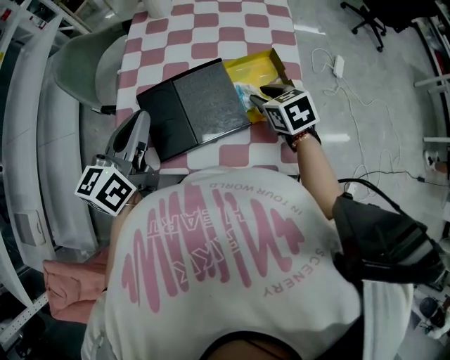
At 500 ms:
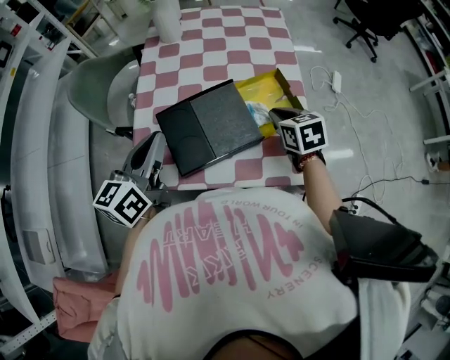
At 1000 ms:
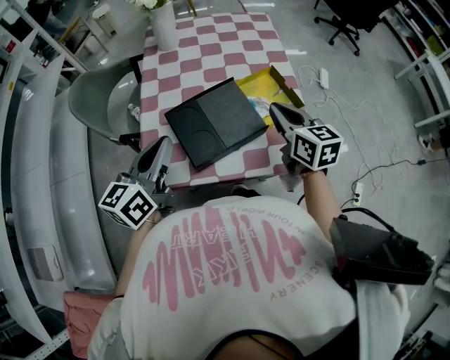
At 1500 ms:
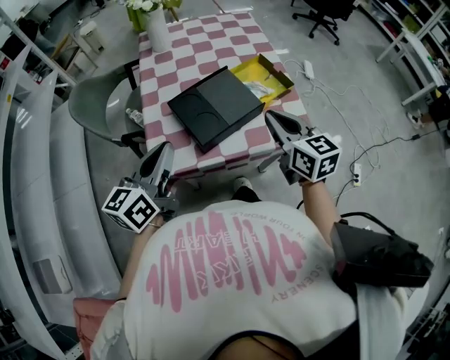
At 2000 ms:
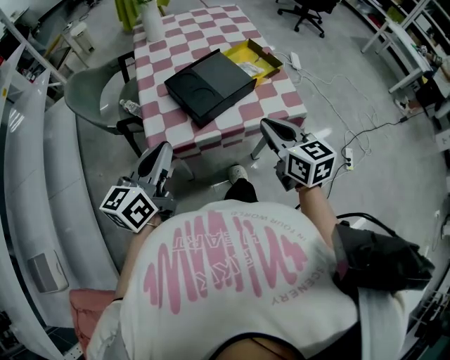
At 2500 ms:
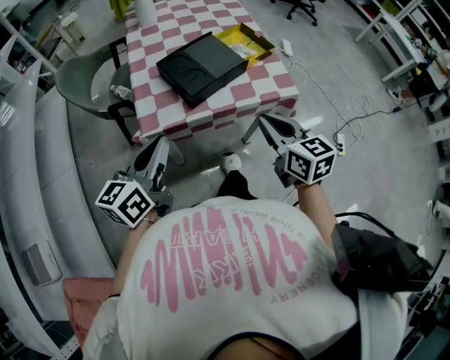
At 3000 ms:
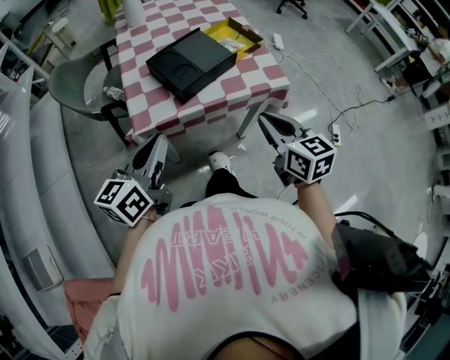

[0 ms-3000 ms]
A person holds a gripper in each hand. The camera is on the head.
0 ms to 1500 ms: The right gripper is displaced backward and upward by some 25 cm, tilts its fingers about 30 degrees upward, and closes. Meanwhile the left gripper is displaced backward and to the left by some 15 cm.
1500 ms to 3000 ms: Both grippers move backward, some 15 cm.

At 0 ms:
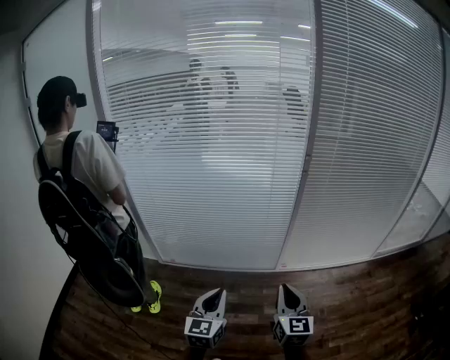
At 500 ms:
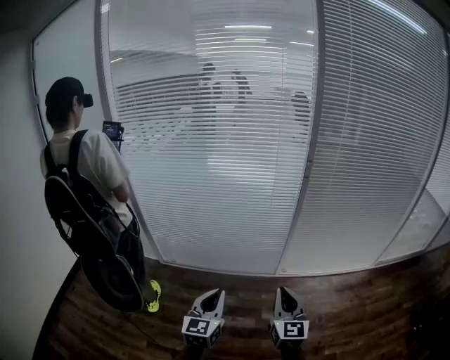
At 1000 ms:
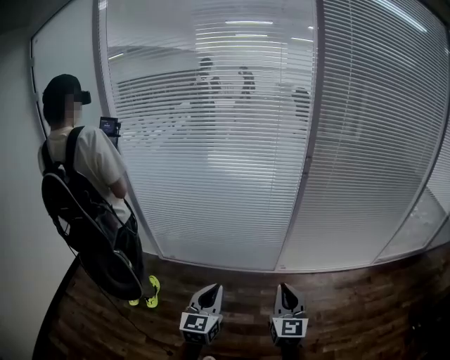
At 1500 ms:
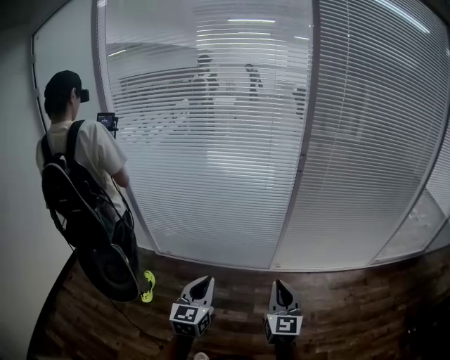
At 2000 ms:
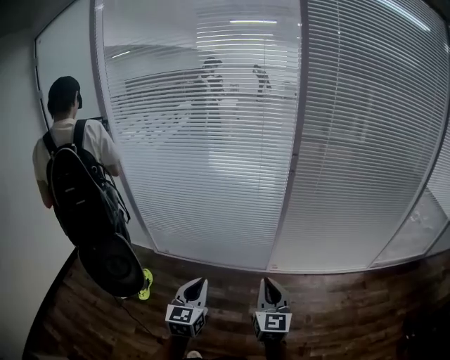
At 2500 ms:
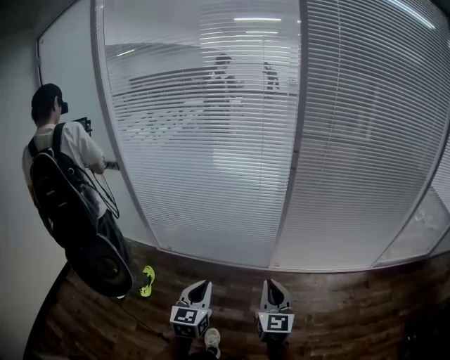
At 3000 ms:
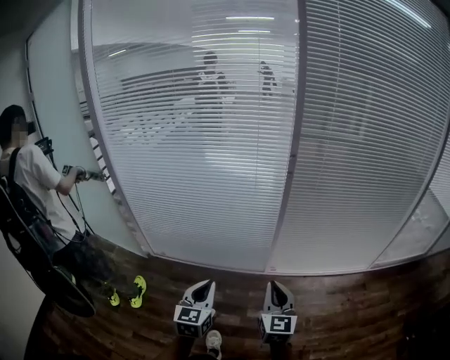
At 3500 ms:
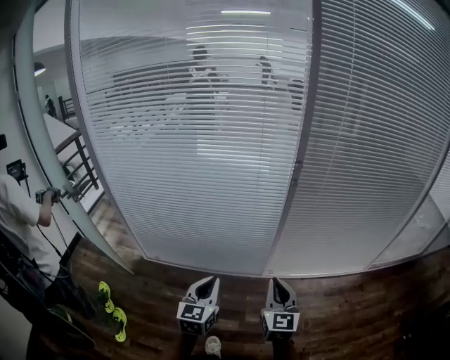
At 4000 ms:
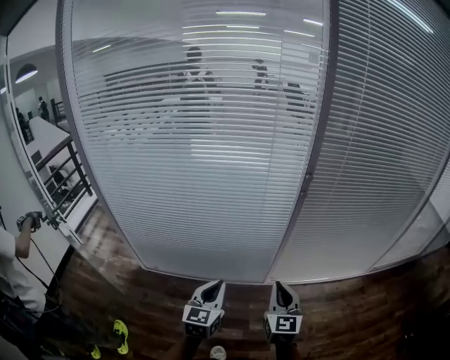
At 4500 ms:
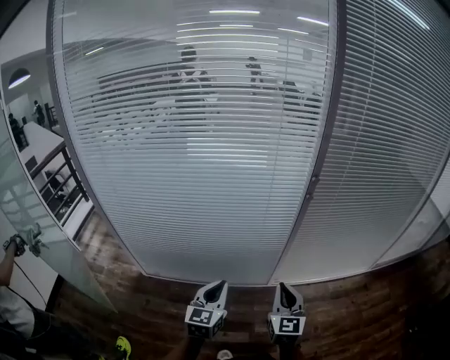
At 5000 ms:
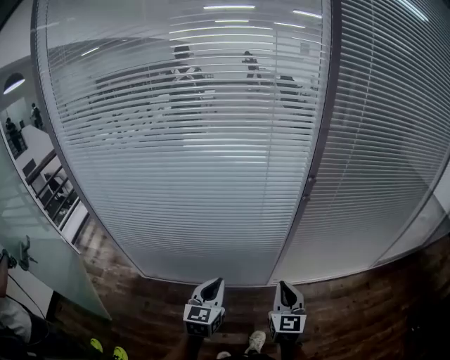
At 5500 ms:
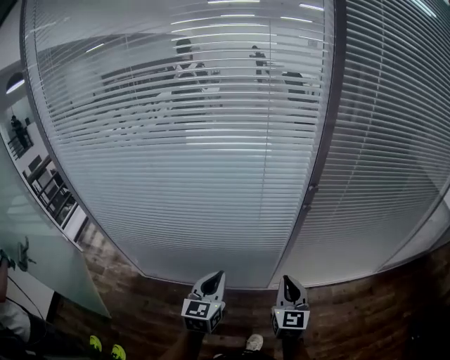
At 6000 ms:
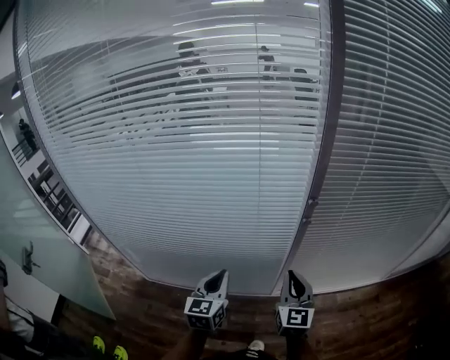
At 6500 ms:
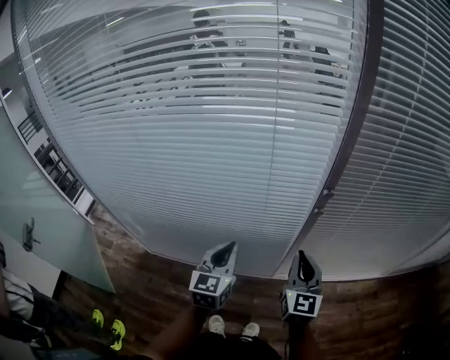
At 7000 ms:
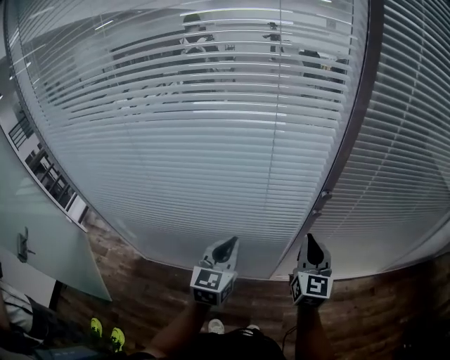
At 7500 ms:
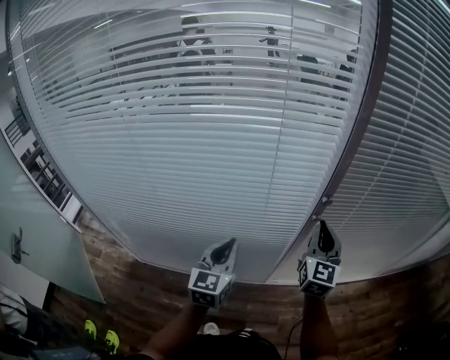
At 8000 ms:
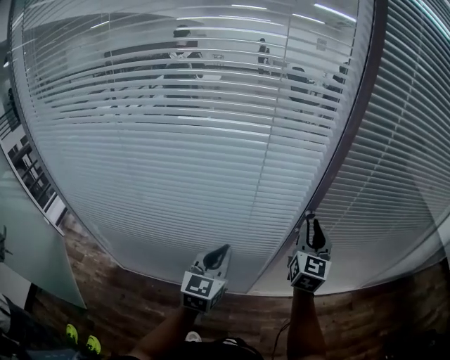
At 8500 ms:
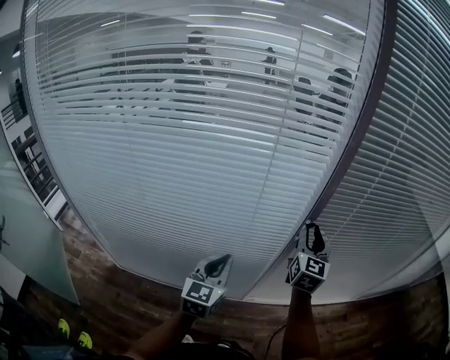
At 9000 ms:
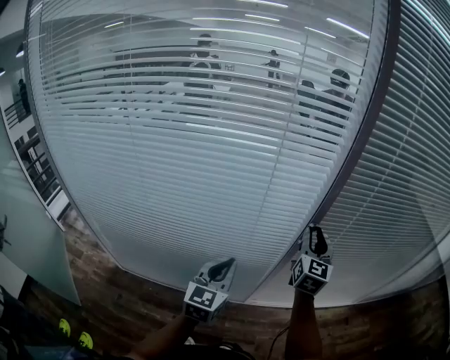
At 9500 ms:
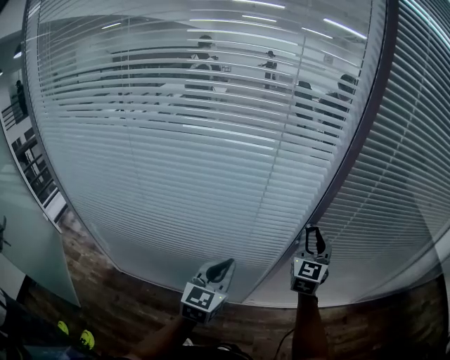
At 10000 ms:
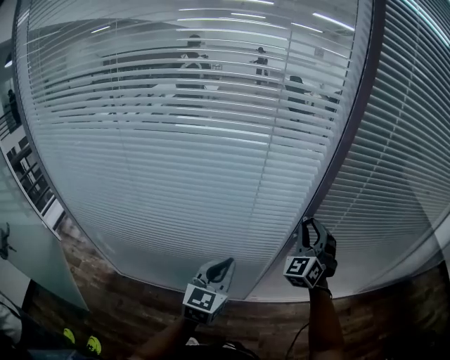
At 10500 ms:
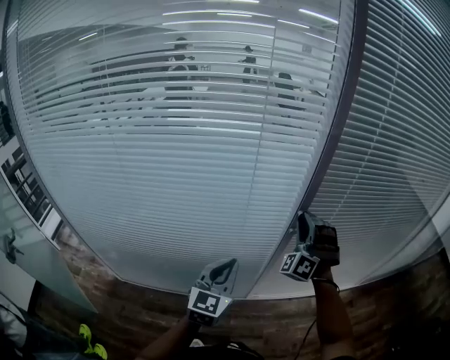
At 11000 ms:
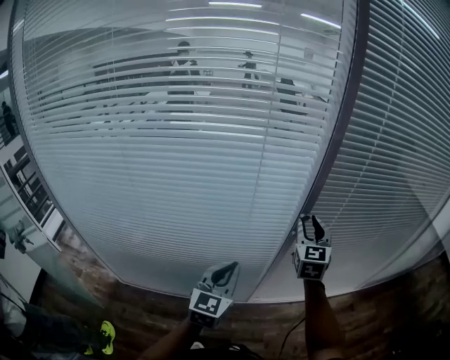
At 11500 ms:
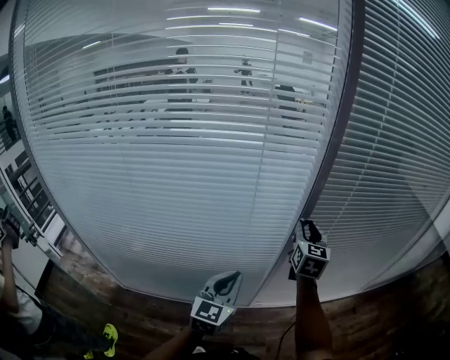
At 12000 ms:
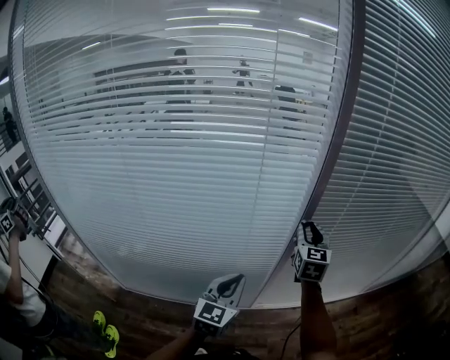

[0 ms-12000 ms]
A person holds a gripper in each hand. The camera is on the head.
0 ms to 2000 ms: Both grippers travel together to the right, about 5 cm.
2000 ms to 4000 ms: Both grippers travel together forward, approximately 15 cm.
4000 ms to 6000 ms: Both grippers move forward, about 20 cm.
6000 ms to 8000 ms: The right gripper is displaced forward and upward by about 20 cm, while the left gripper heads forward, covering approximately 10 cm.
8000 ms to 10000 ms: The right gripper rotates around the line of its fingers by roughly 50 degrees, counterclockwise from behind.
10000 ms to 12000 ms: The right gripper rotates around the line of its fingers by some 50 degrees, clockwise from behind.

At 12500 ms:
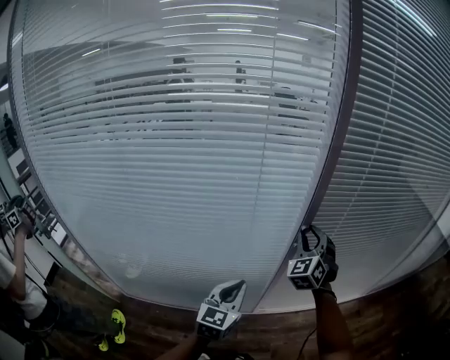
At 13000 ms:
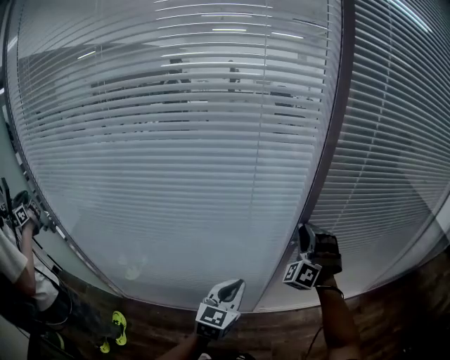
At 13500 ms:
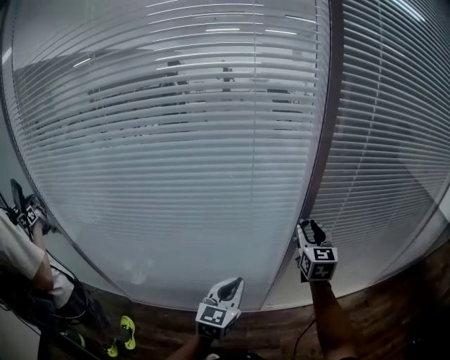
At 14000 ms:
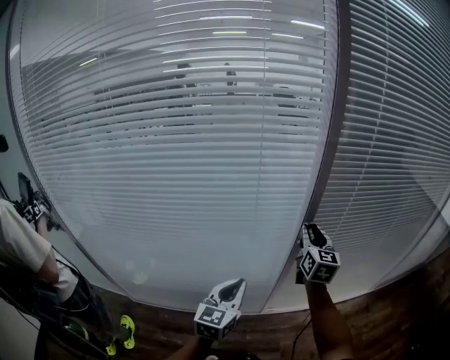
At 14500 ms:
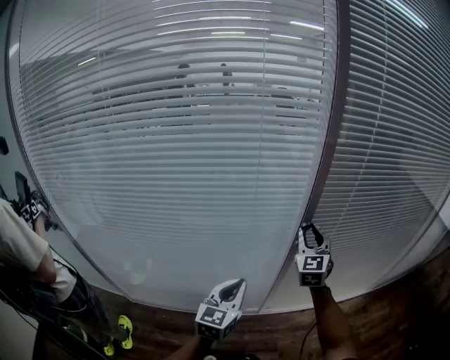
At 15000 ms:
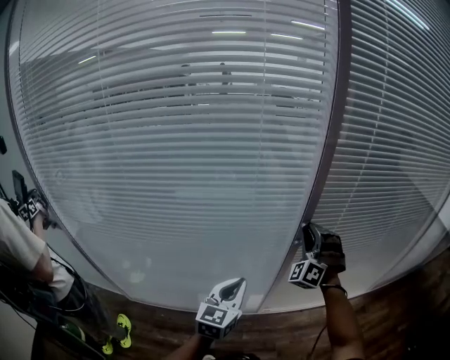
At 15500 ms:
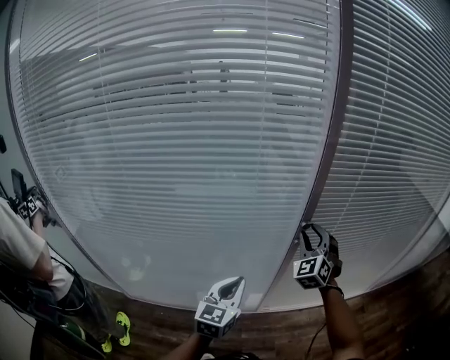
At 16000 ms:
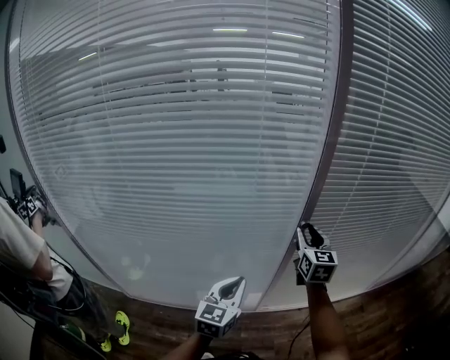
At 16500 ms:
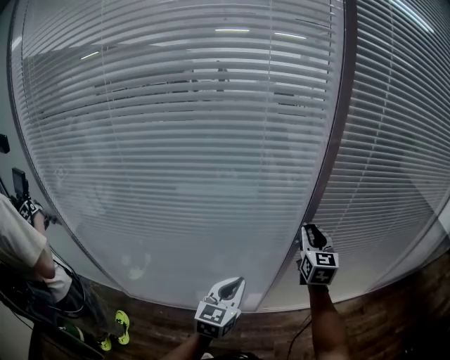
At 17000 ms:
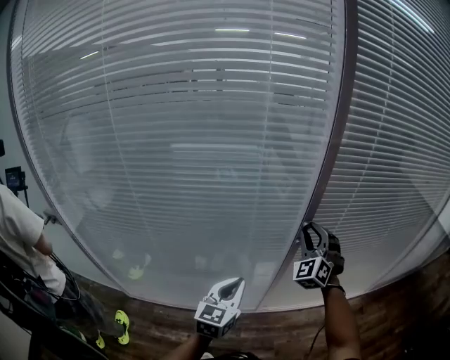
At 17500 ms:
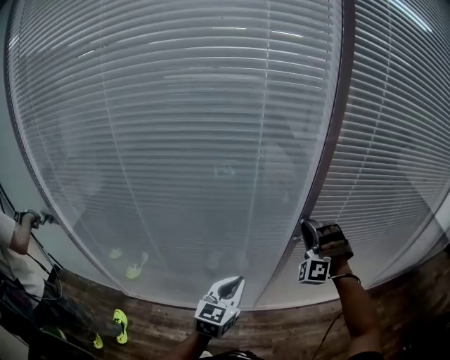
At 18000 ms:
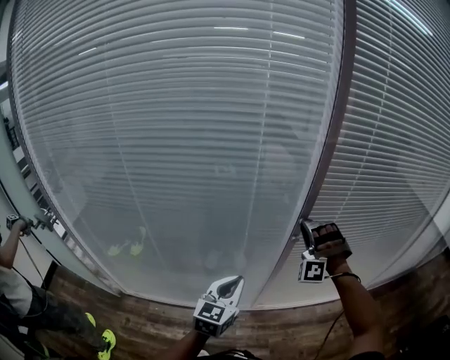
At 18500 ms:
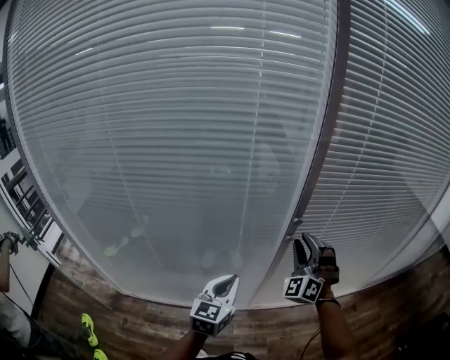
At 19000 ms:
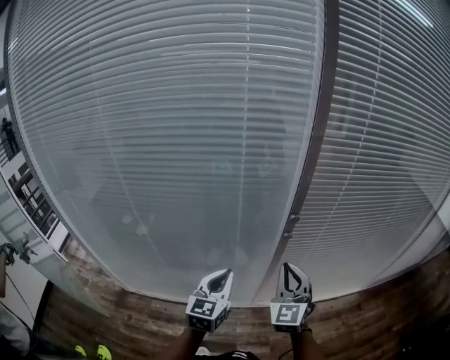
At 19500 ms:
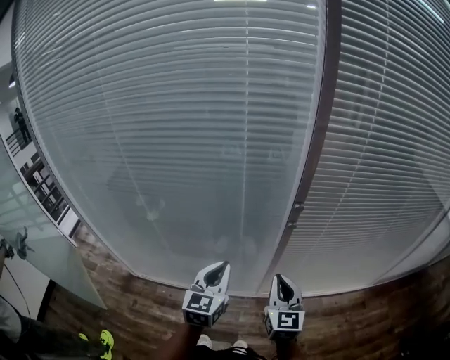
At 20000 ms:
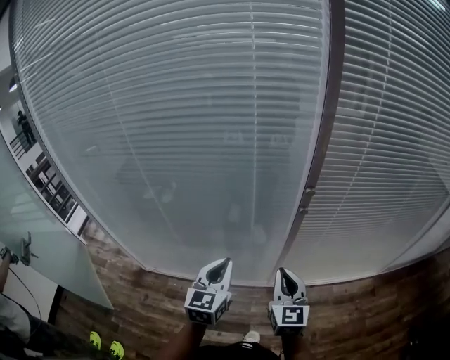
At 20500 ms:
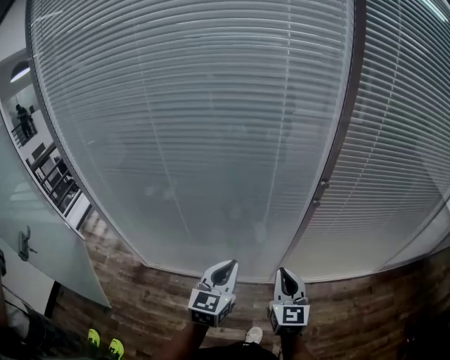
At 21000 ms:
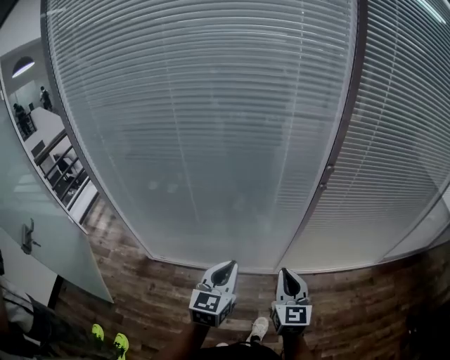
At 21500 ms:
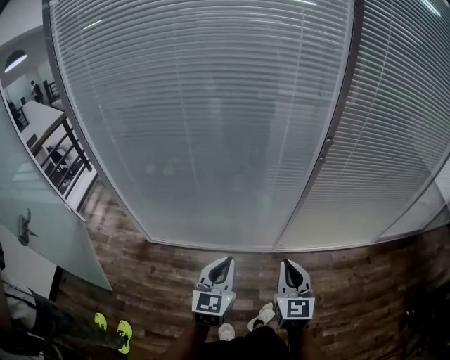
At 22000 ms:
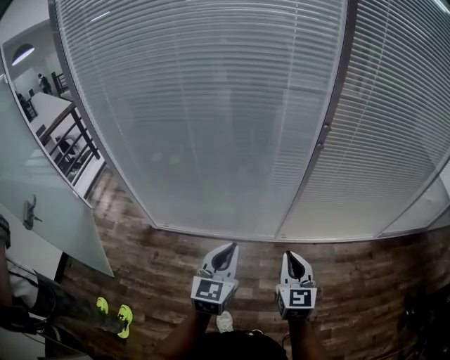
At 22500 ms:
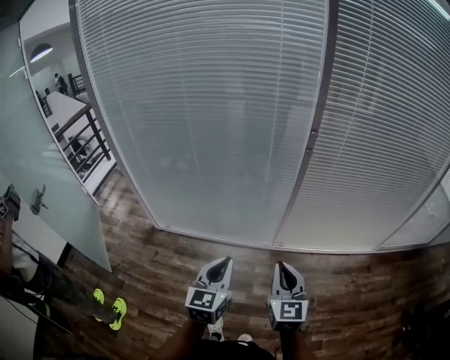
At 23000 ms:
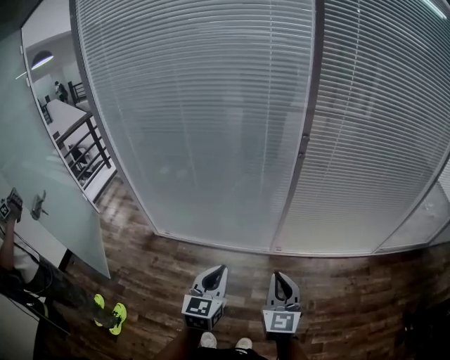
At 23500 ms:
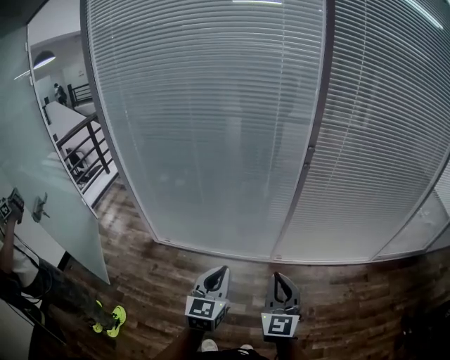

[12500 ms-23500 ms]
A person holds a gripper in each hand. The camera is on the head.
12500 ms to 14500 ms: The right gripper turns by some 30 degrees.
14500 ms to 16000 ms: The right gripper rotates approximately 20 degrees.
16000 ms to 18000 ms: The right gripper twists some 110 degrees counterclockwise, seen from behind.
18000 ms to 20000 ms: The right gripper moves backward and downward, about 20 cm, rotates around the line of its fingers by approximately 100 degrees, clockwise from behind, and closes up.
20000 ms to 21500 ms: Both grippers move backward and to the left, about 25 cm.
21500 ms to 23500 ms: The two grippers go roughly 15 cm backward and to the right.

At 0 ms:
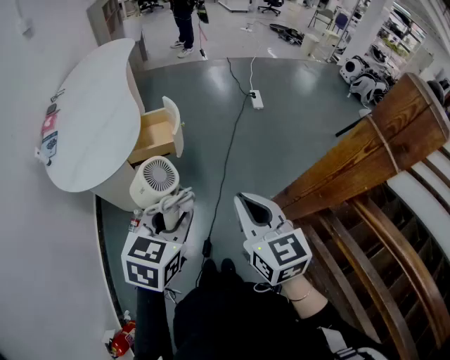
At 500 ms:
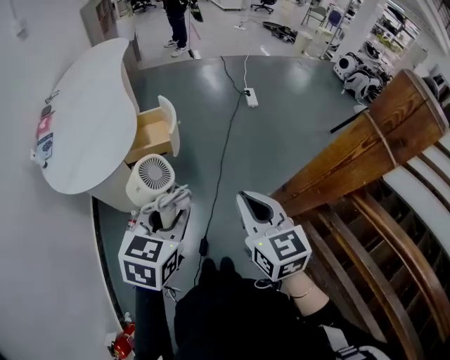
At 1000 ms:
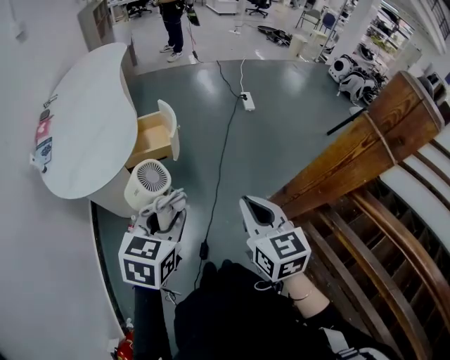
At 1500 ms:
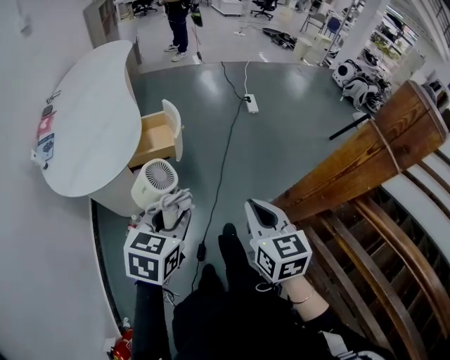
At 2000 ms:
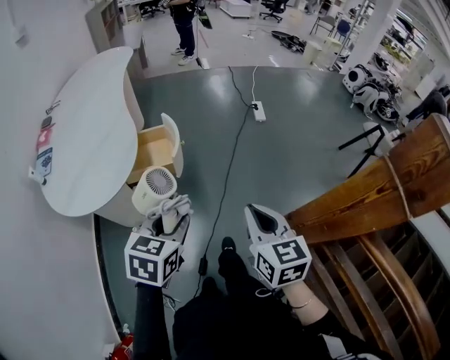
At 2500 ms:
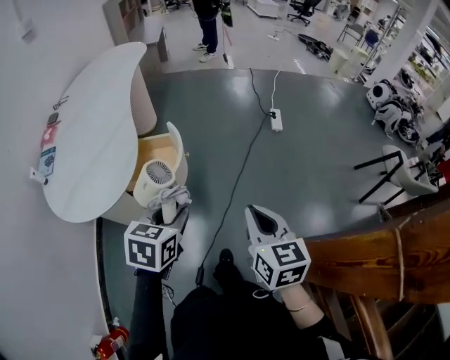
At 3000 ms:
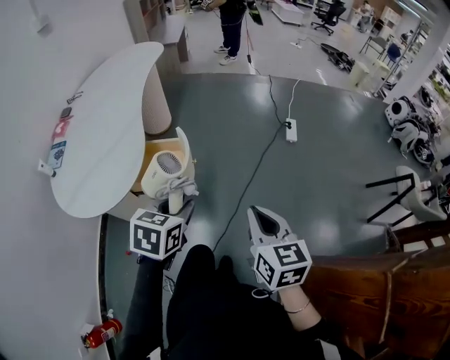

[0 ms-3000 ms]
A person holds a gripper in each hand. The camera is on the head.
0 ms to 1500 ms: There are only small adjustments of the grippers.
1500 ms to 3000 ms: The grippers both shift forward by some 25 cm.
